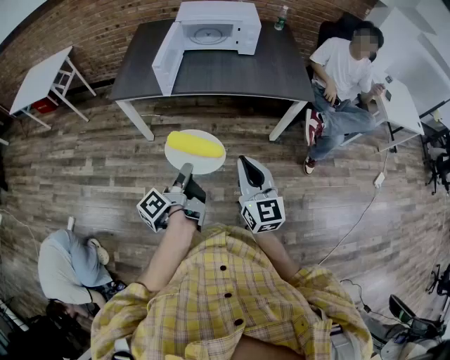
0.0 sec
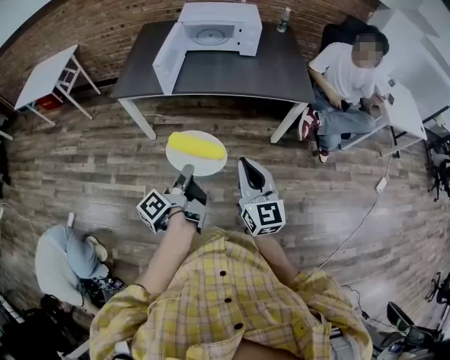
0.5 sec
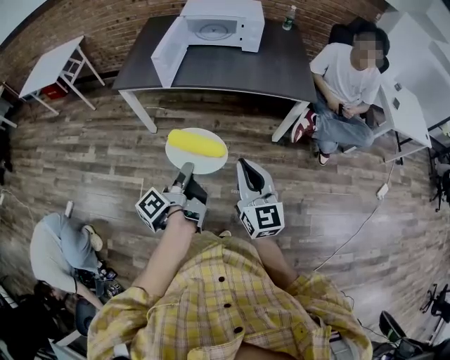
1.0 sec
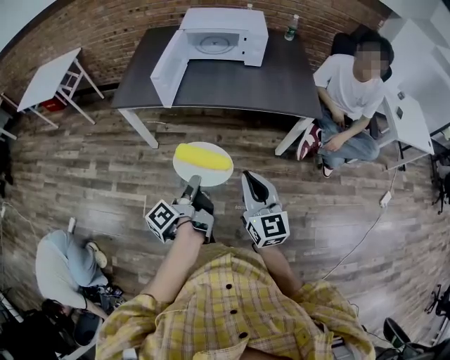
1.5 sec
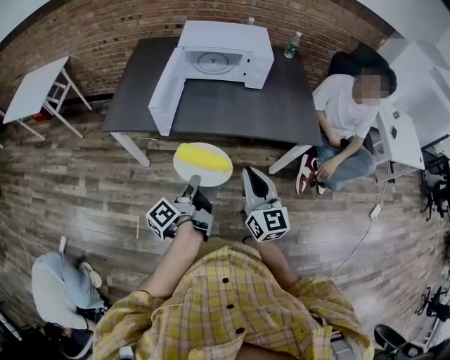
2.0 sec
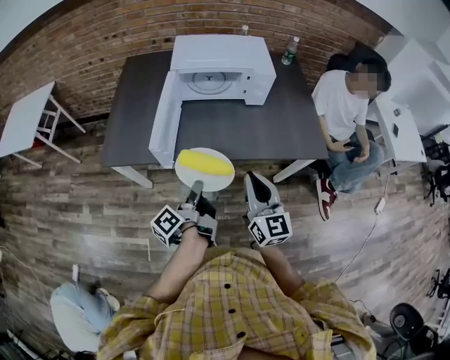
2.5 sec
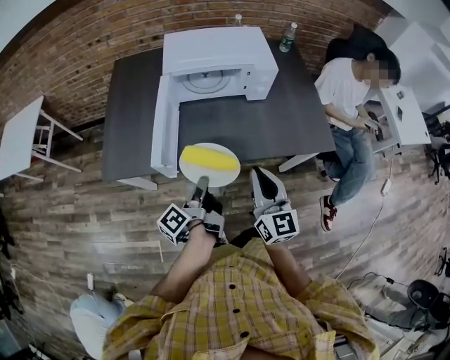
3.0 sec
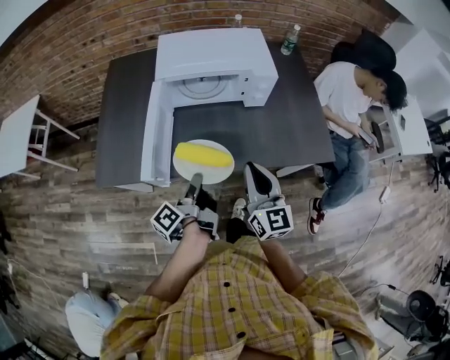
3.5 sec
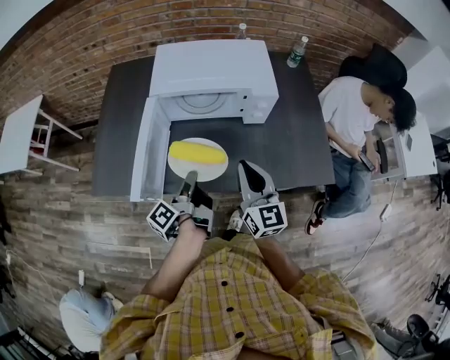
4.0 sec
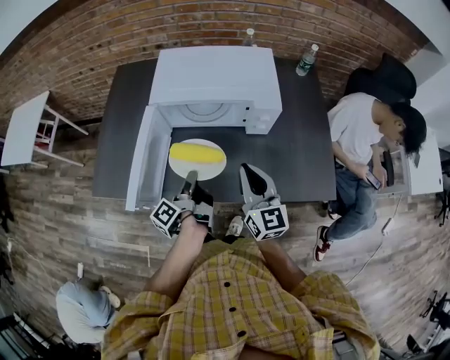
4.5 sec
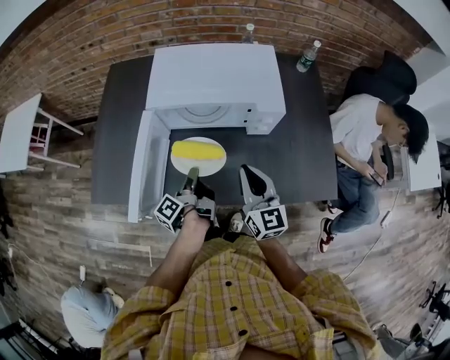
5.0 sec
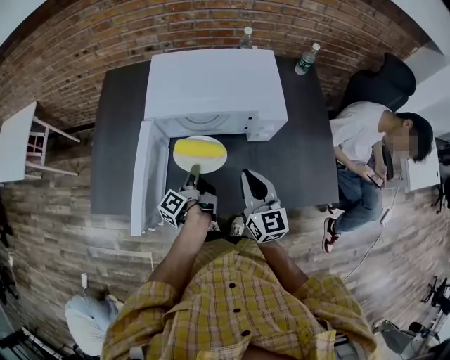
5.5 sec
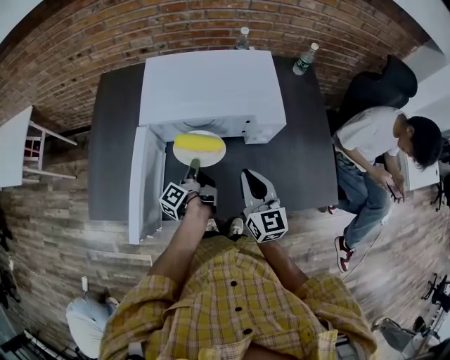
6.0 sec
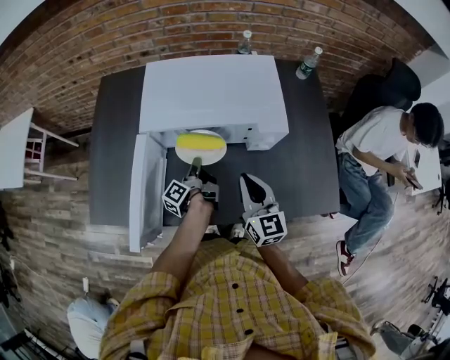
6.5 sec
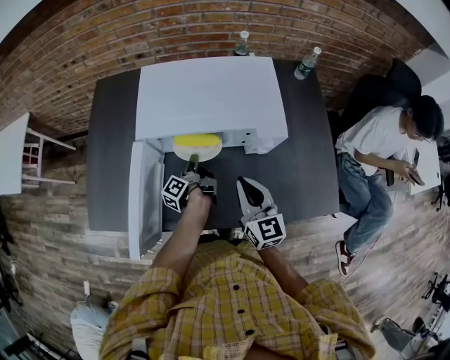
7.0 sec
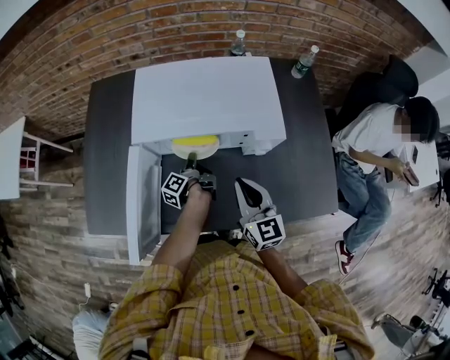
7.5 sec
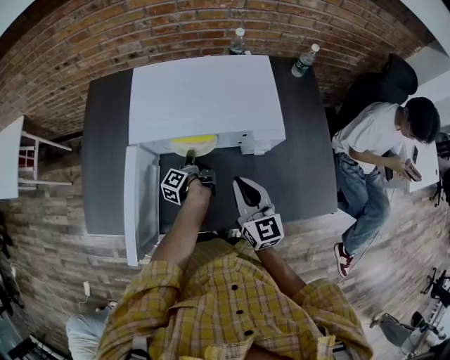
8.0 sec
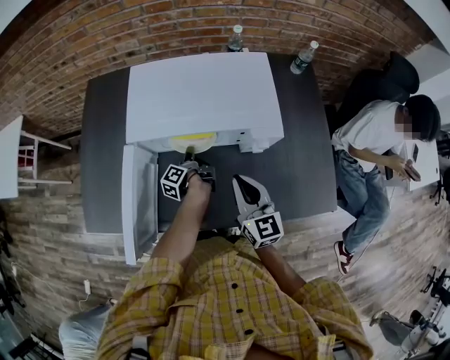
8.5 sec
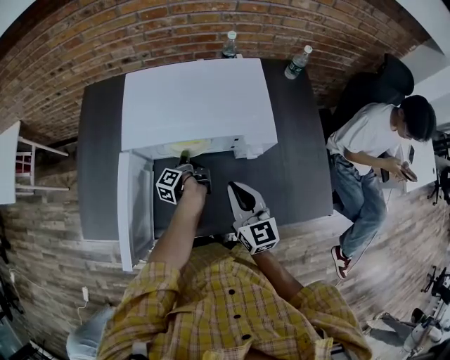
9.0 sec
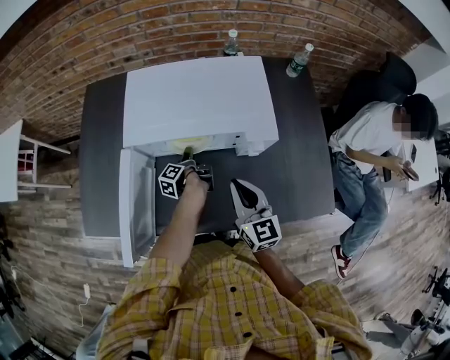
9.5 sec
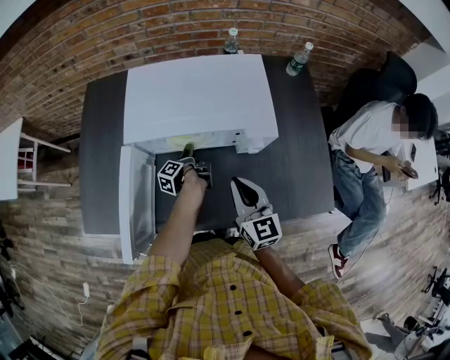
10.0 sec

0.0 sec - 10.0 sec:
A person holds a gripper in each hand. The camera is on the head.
0.0 sec - 2.0 sec: The right gripper moves roughly 20 cm.
2.0 sec - 4.0 sec: The right gripper shifts by about 30 cm.
4.0 sec - 6.0 sec: The right gripper shifts by about 10 cm.

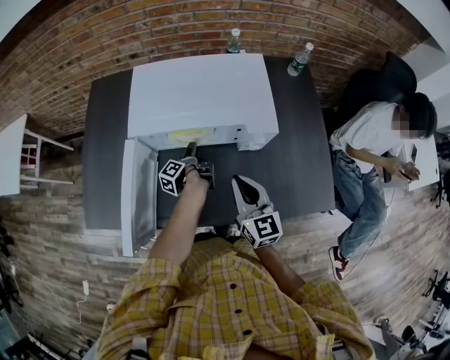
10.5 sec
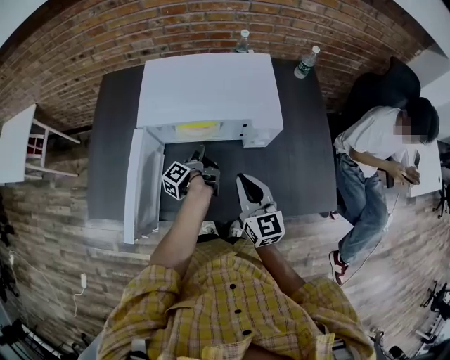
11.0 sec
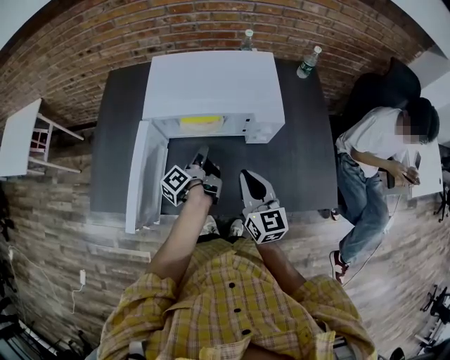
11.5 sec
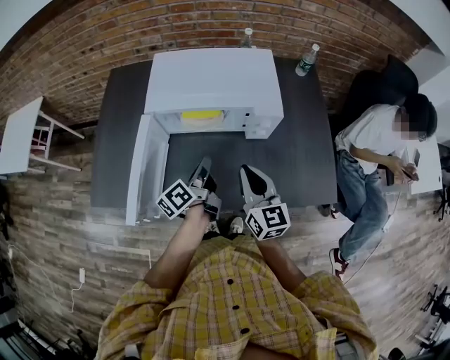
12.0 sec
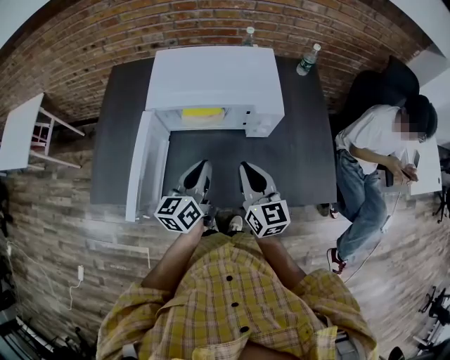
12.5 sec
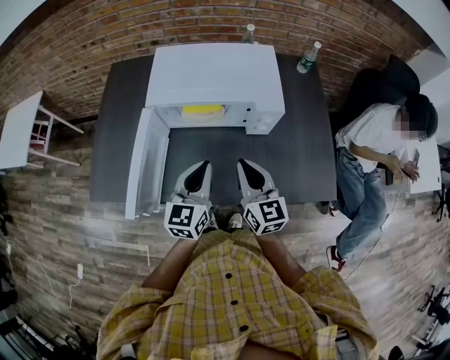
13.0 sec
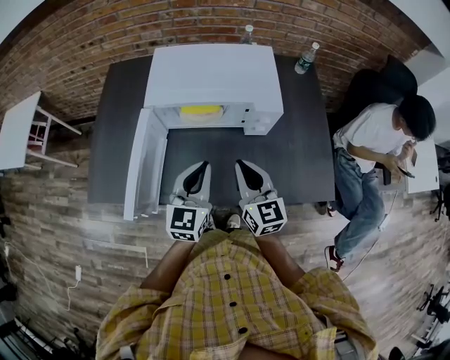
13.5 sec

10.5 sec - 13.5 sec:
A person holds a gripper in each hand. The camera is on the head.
10.5 sec - 12.0 sec: The right gripper ends up about 5 cm from where it was.

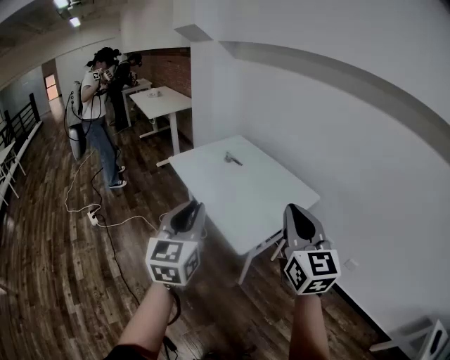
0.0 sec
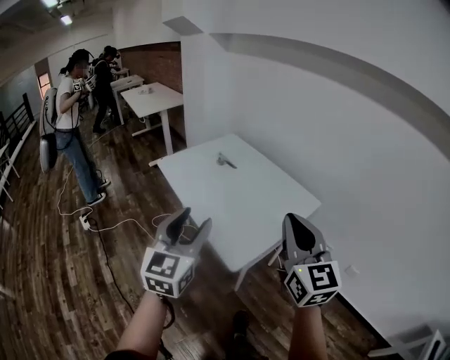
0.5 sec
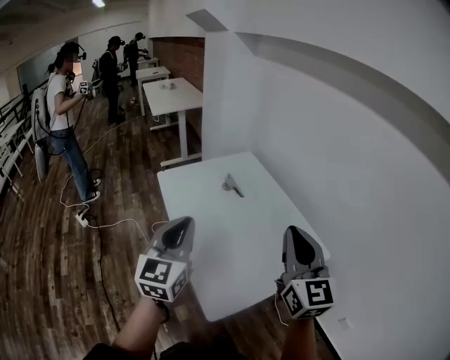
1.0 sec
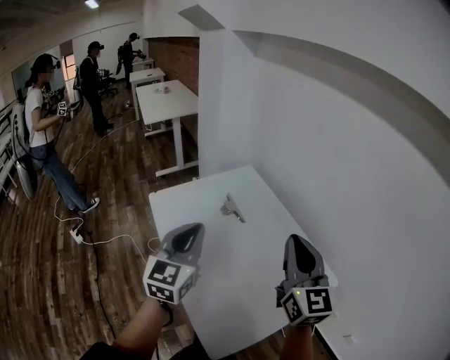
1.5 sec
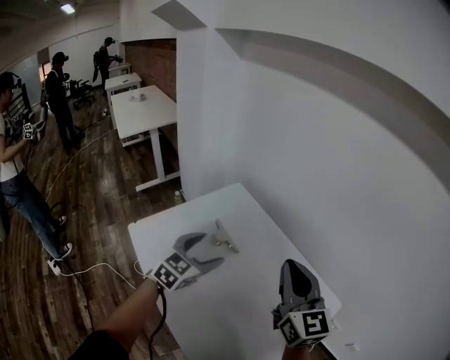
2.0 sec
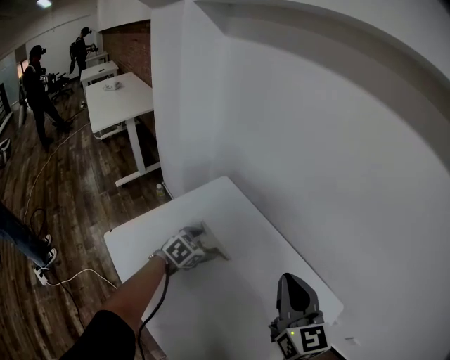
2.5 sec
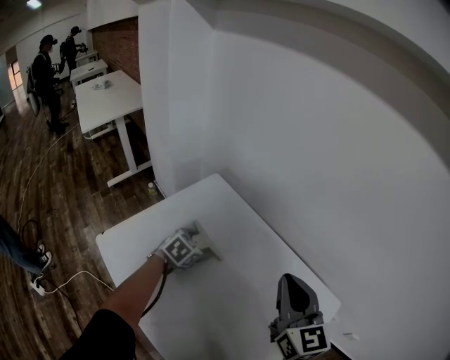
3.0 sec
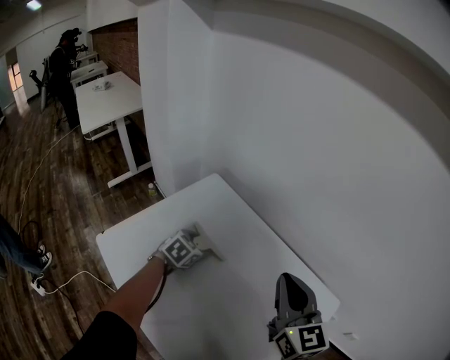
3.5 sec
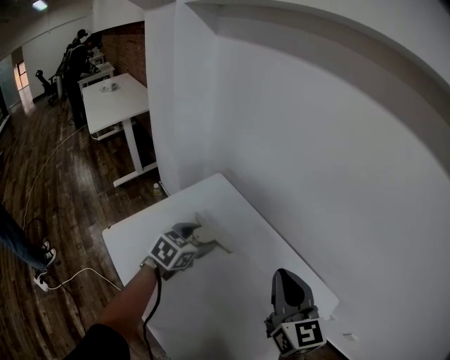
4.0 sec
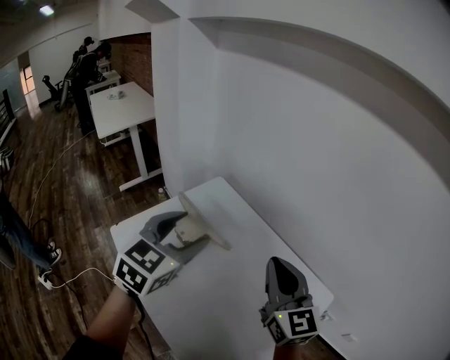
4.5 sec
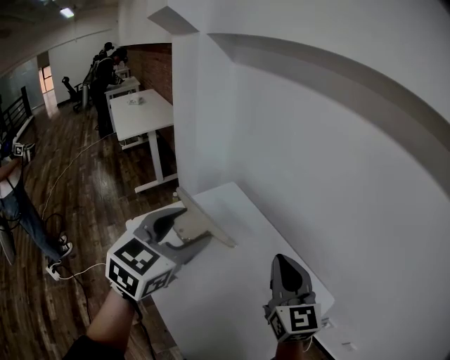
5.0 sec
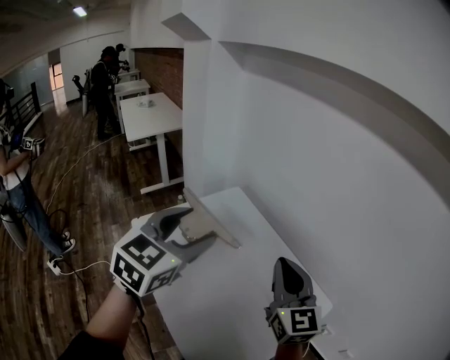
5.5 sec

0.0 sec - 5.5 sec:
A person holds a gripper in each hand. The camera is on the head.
0.0 sec - 2.0 sec: The two grippers travel together, forward, some 50 cm. The left gripper goes about 20 cm downward, turns by some 40 degrees, and opens up.
2.0 sec - 3.5 sec: The left gripper moves downward and forward, roughly 20 cm, and changes its angle by some 30 degrees; the right gripper goes some 5 cm downward.
3.5 sec - 5.5 sec: The left gripper moves upward and backward, roughly 40 cm, and points its fingers roughly 30 degrees further upward. Meanwhile the right gripper is displaced upward by about 10 cm.

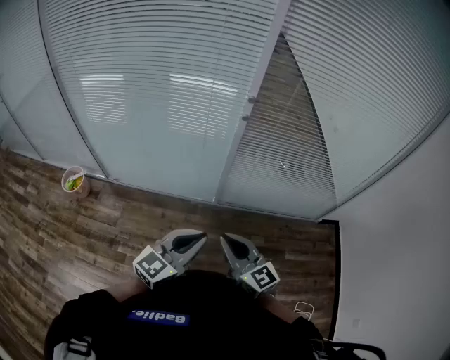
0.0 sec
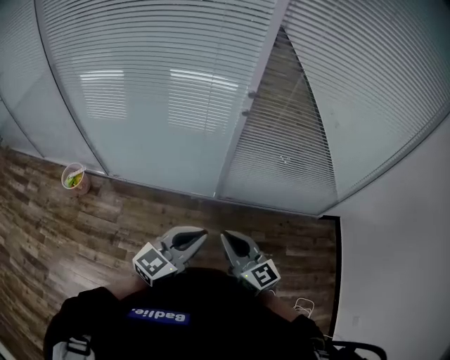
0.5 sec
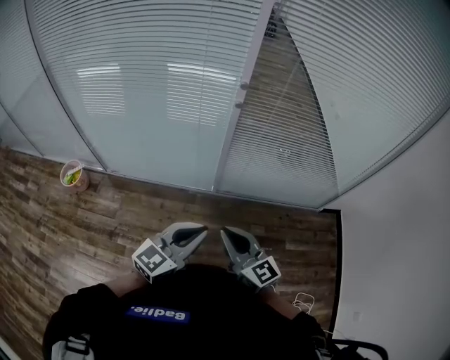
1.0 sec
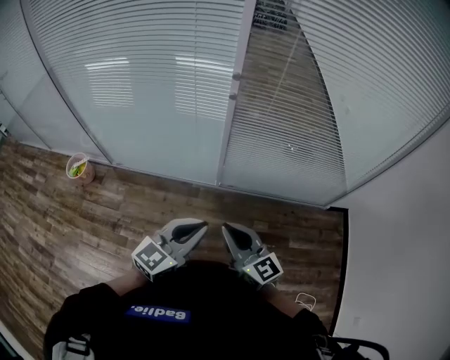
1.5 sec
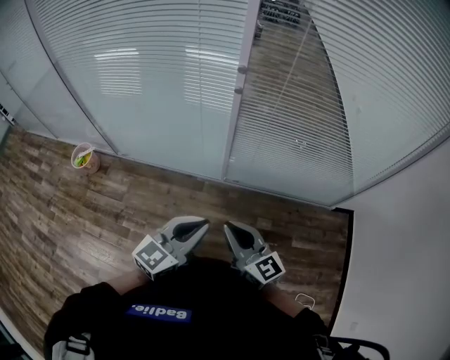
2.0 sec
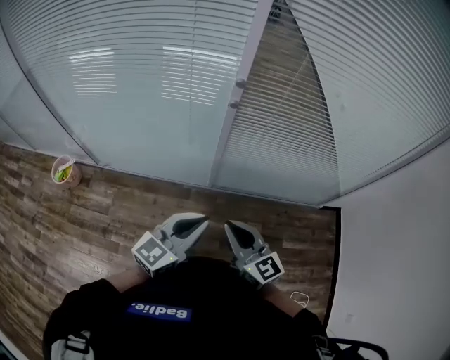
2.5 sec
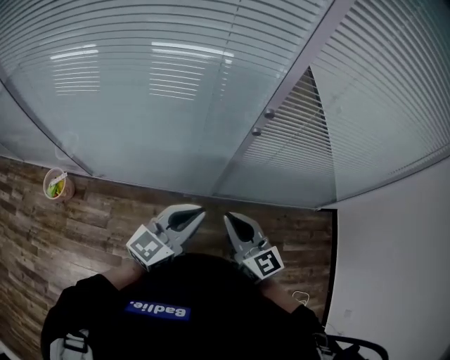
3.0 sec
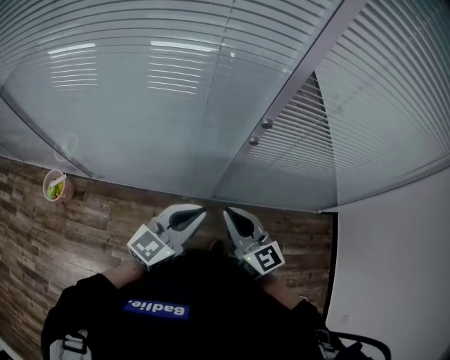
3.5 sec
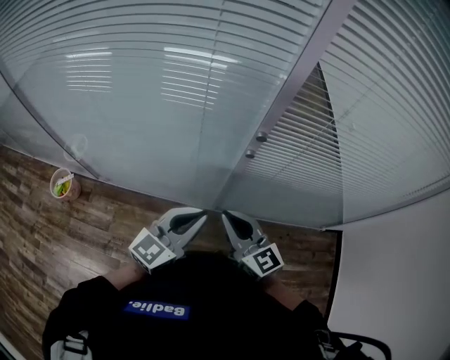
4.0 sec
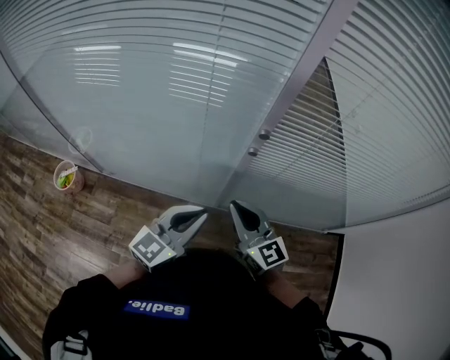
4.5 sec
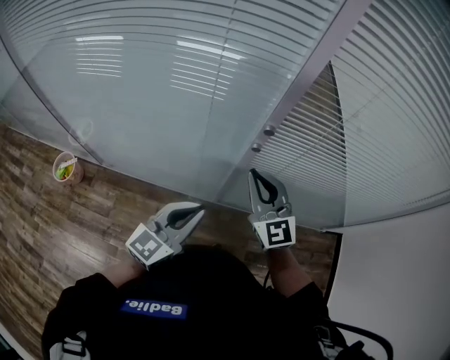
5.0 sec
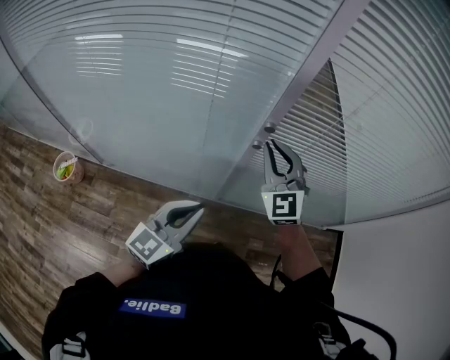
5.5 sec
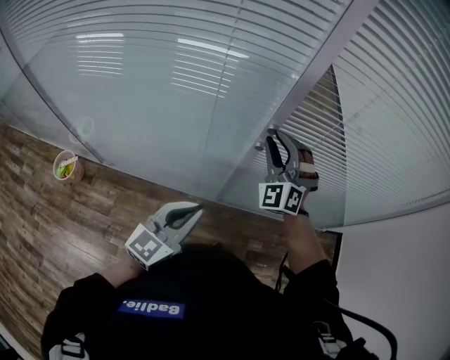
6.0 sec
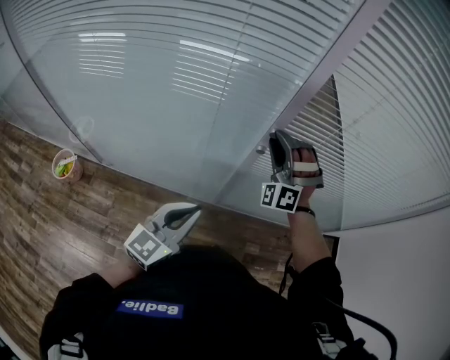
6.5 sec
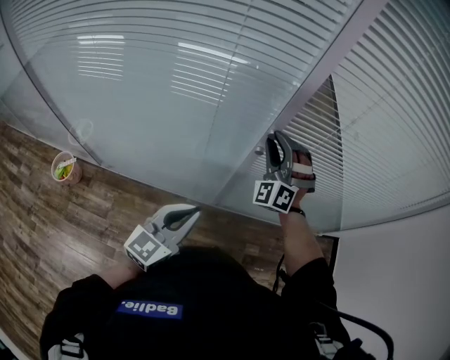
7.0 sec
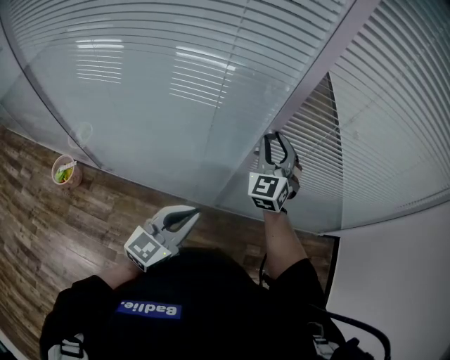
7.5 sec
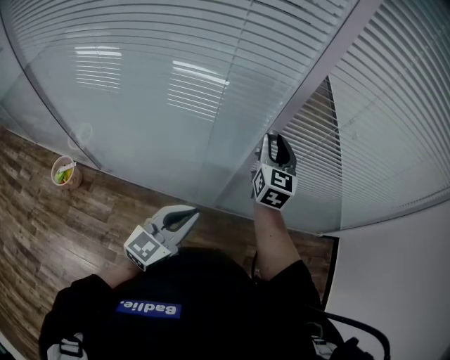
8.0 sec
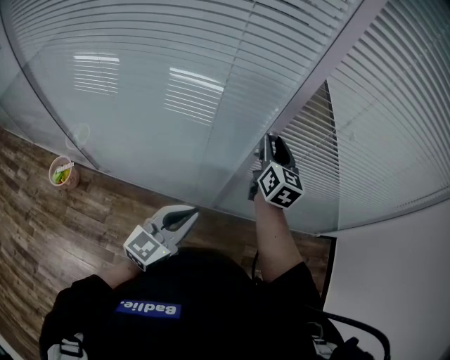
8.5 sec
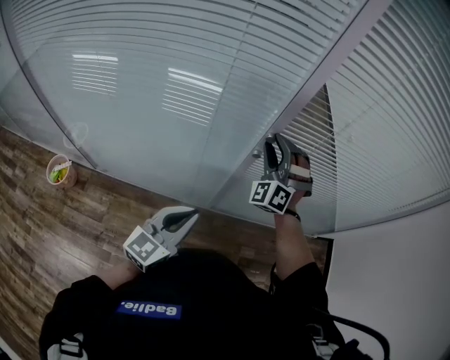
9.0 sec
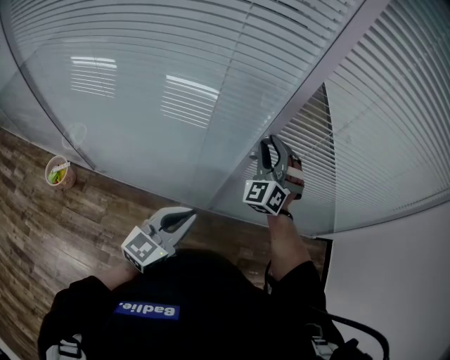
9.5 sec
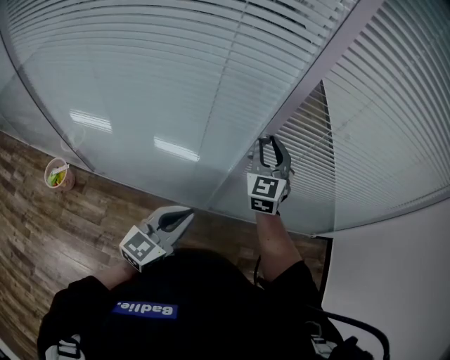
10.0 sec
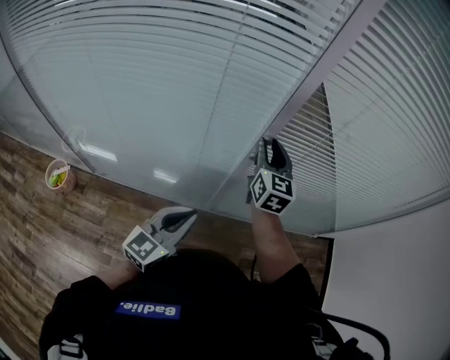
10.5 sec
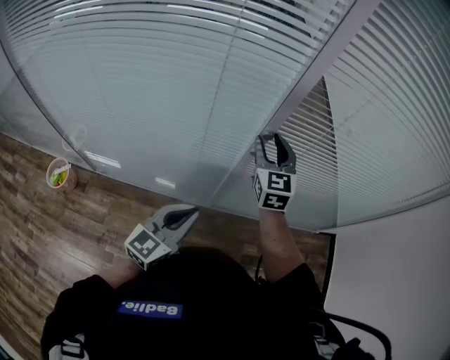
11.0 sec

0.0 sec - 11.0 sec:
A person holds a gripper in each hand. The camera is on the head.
0.0 sec - 2.0 sec: The grippers both shift to the right by roughly 10 cm.
2.0 sec - 3.5 sec: The grippers both shift forward and to the left by approximately 20 cm.
3.5 sec - 5.5 sec: The right gripper travels forward and upward by approximately 20 cm, and rotates around the line of its fingers by some 40 degrees, counterclockwise from behind.
5.5 sec - 7.5 sec: The right gripper is displaced forward by some 5 cm, and opens its fingers.
7.5 sec - 9.0 sec: The right gripper rotates roughly 40 degrees.
9.0 sec - 11.0 sec: The right gripper rolls clockwise, seen from behind, by roughly 60 degrees.
